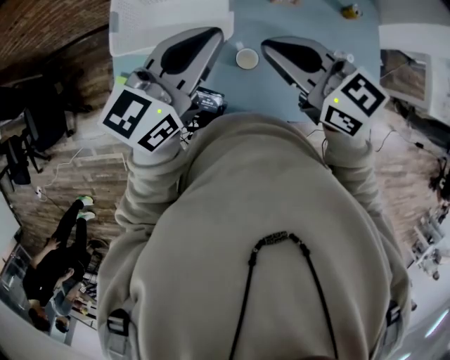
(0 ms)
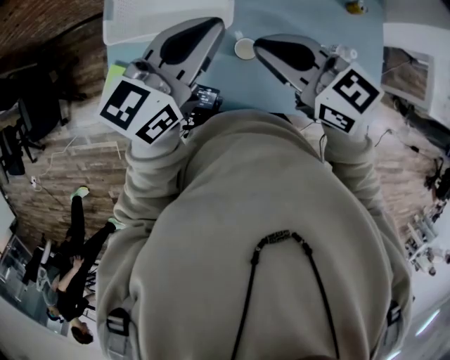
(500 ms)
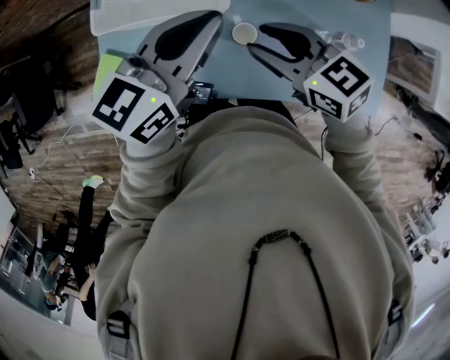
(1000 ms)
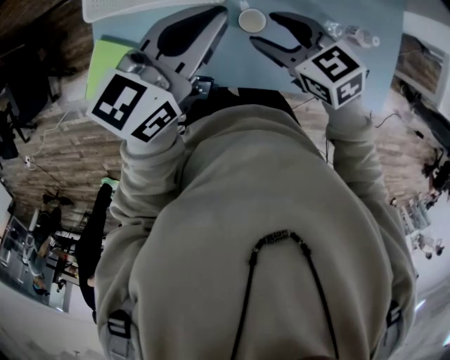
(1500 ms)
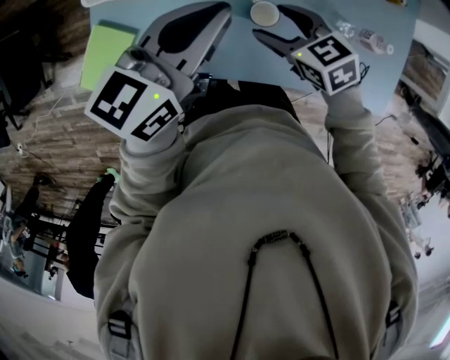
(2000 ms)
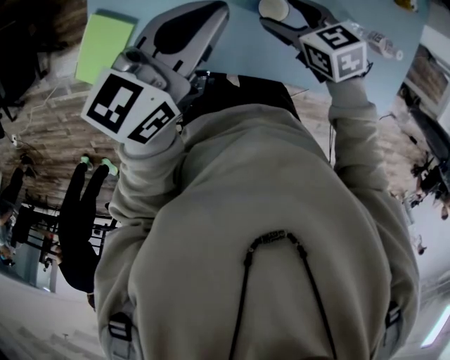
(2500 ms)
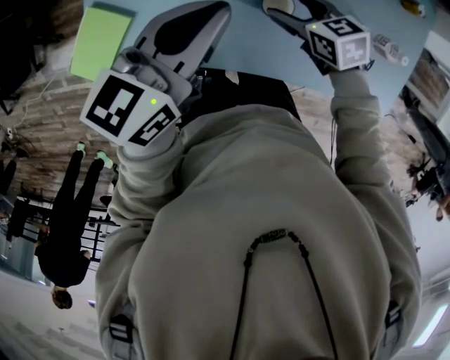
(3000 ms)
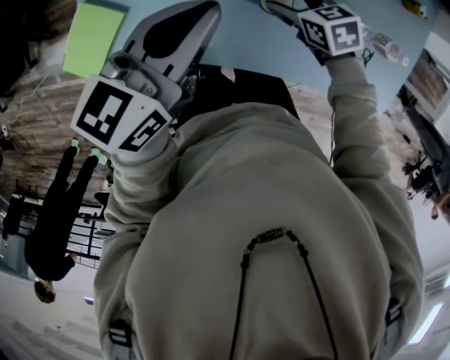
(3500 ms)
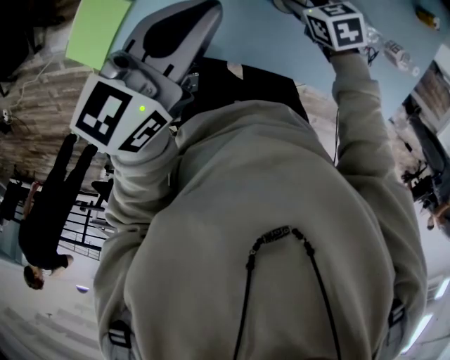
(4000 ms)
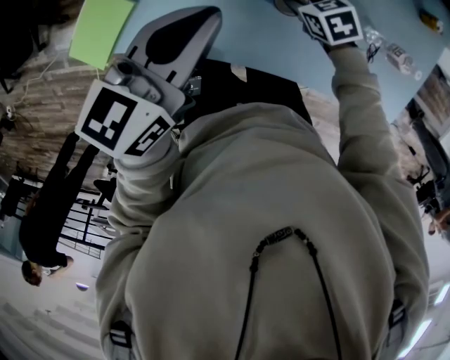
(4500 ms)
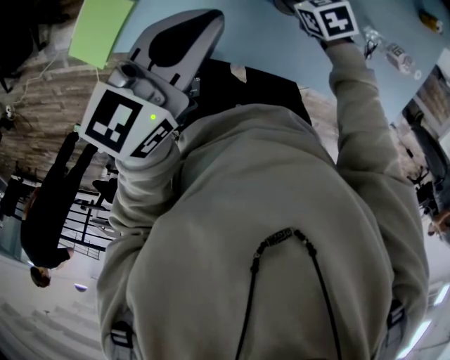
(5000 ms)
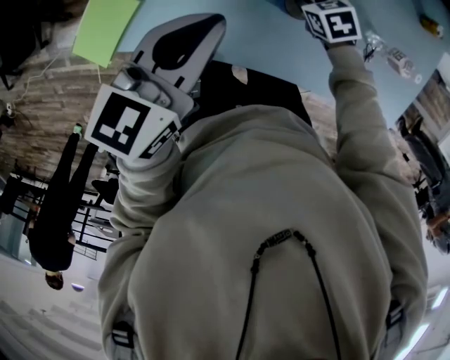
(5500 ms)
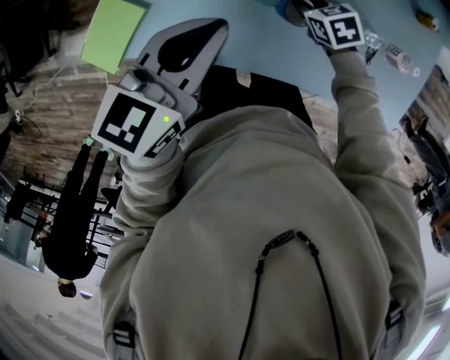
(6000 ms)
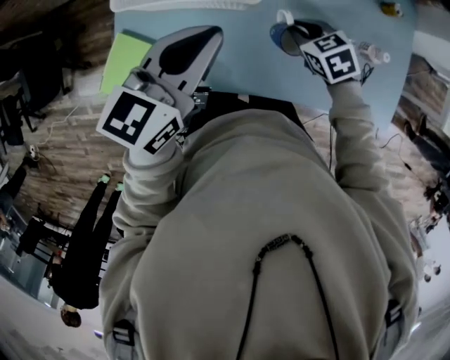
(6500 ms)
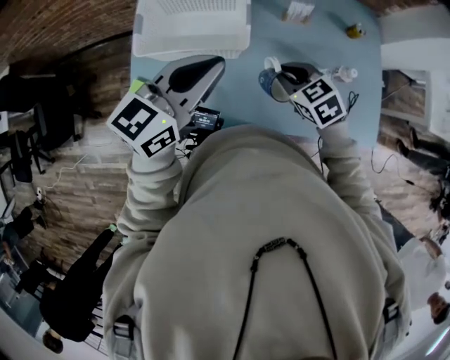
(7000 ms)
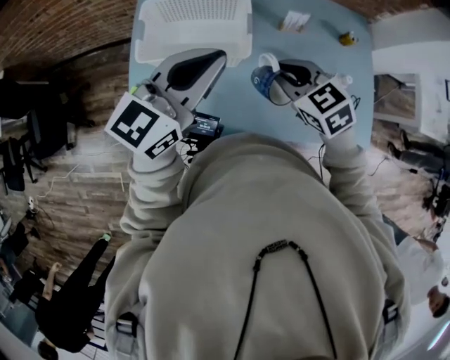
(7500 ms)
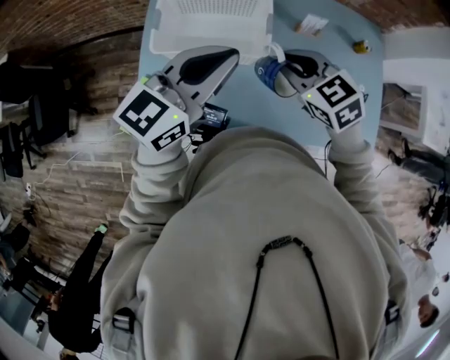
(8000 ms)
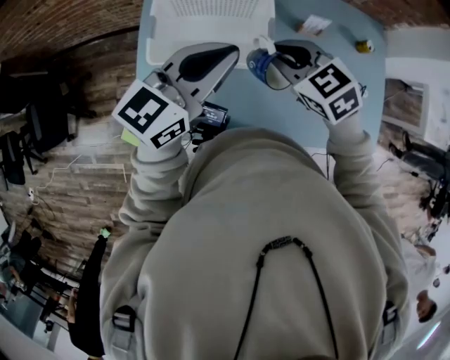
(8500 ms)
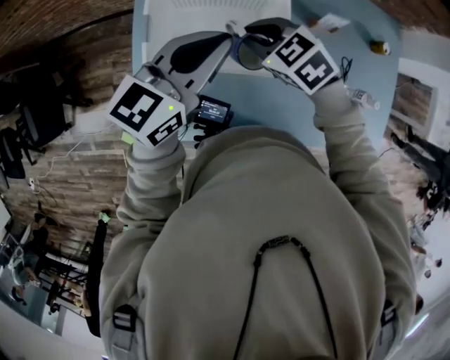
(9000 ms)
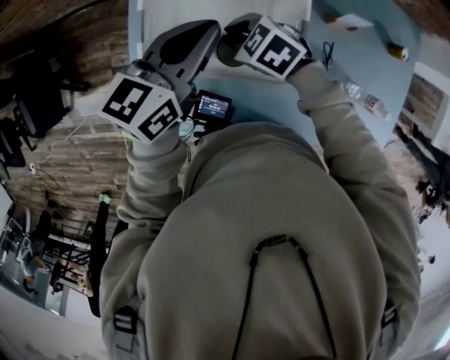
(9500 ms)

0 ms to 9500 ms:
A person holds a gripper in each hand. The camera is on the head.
0 ms to 2000 ms: The left gripper is displaced downward by some 10 cm; the right gripper travels downward by roughly 25 cm, changes its angle by roughly 30 degrees, and opens.
2000 ms to 4000 ms: The left gripper moves downward, roughly 5 cm, while the right gripper goes about 15 cm downward.
4000 ms to 5500 ms: The right gripper closes up.
5500 ms to 7500 ms: The right gripper shifts some 30 cm upward, and changes its angle by roughly 30 degrees, while the left gripper heads upward, covering some 20 cm, and turns by roughly 30 degrees.
7500 ms to 9500 ms: The right gripper shifts about 30 cm downward, to the left and forward, and turns by about 30 degrees. Meanwhile the left gripper moves forward and downward, about 25 cm, and swivels approximately 30 degrees.

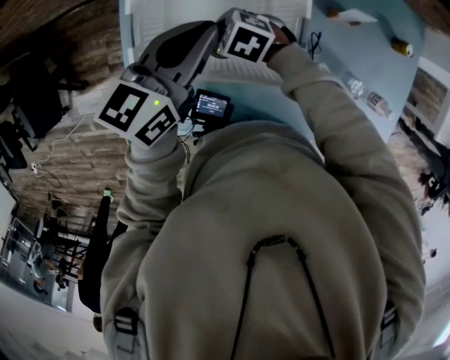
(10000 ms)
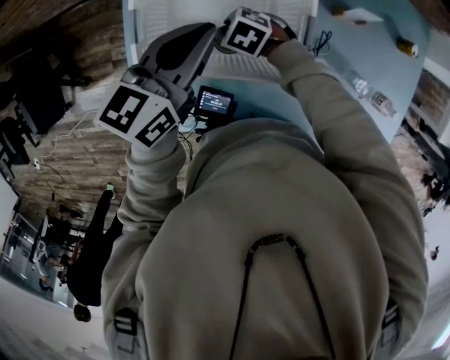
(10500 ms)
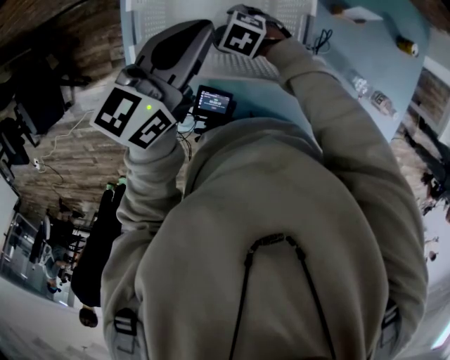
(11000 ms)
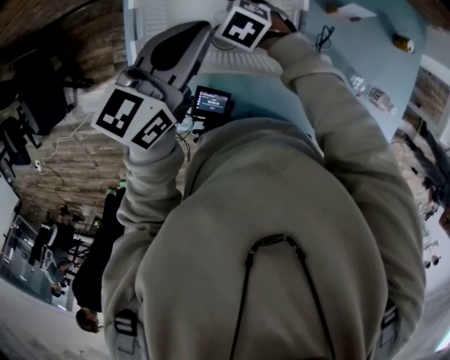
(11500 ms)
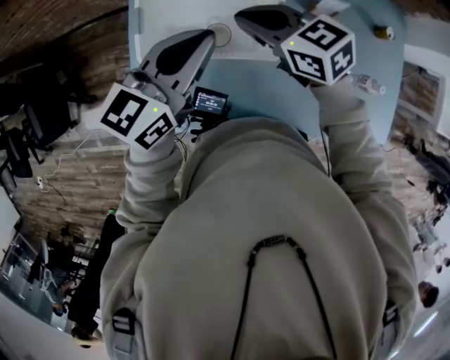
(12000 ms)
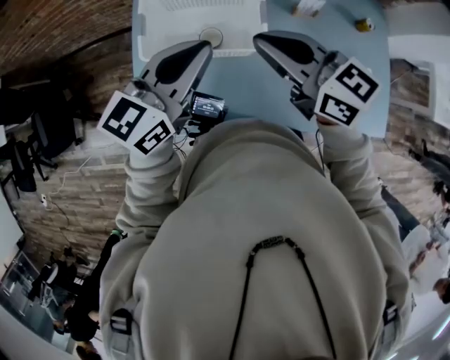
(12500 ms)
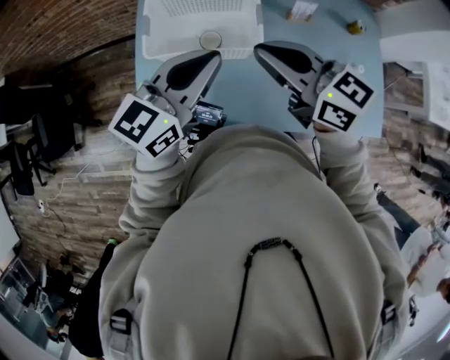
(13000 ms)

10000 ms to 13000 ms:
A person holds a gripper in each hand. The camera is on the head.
10000 ms to 11500 ms: The right gripper opens up.
11500 ms to 13000 ms: The right gripper is displaced upward and backward by approximately 35 cm, tips its fingers upward by some 60 degrees, and closes up. The left gripper heads backward and upward, covering about 15 cm.

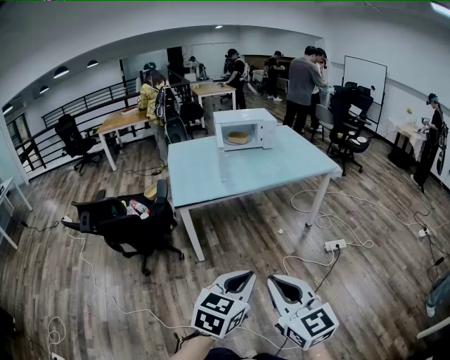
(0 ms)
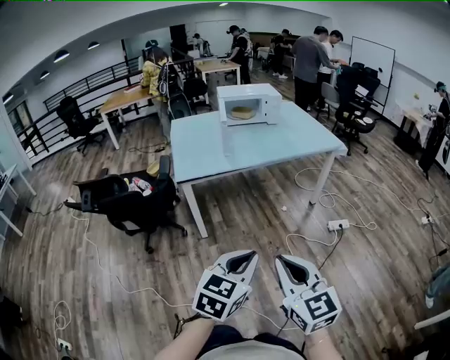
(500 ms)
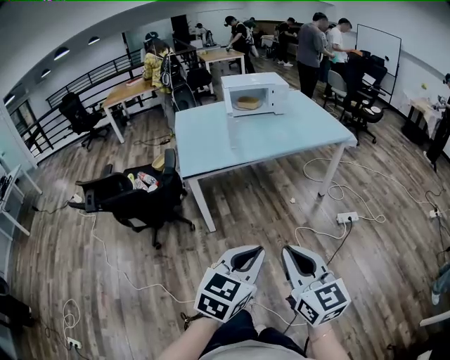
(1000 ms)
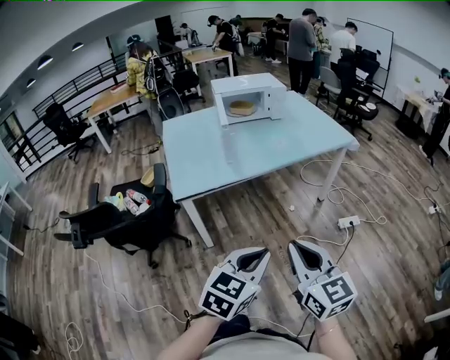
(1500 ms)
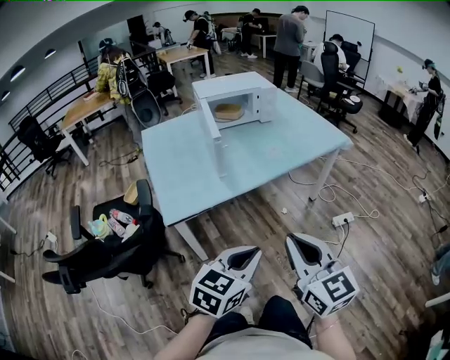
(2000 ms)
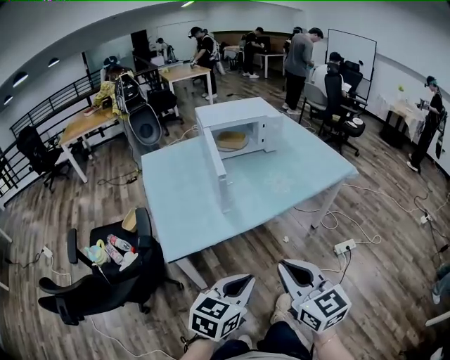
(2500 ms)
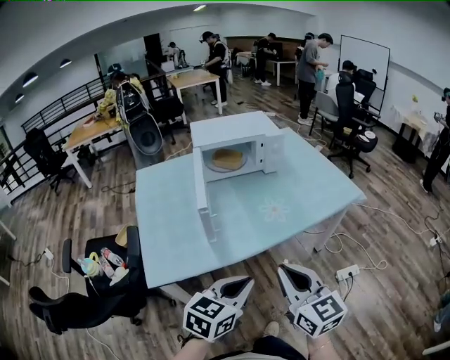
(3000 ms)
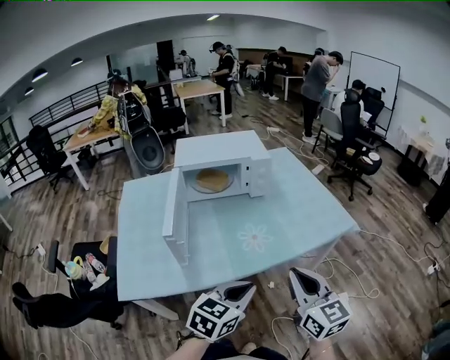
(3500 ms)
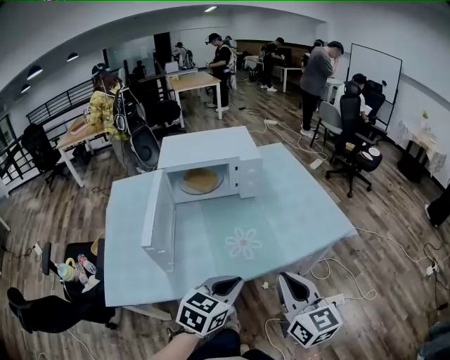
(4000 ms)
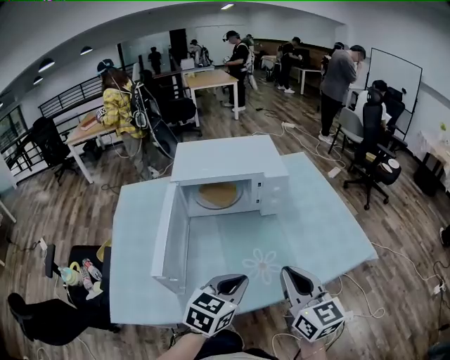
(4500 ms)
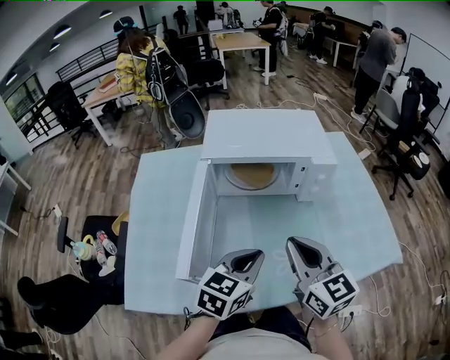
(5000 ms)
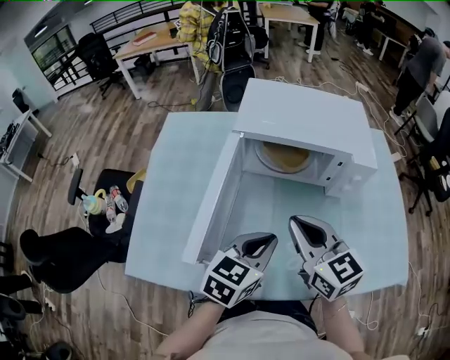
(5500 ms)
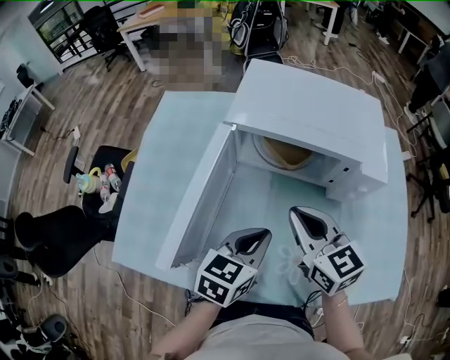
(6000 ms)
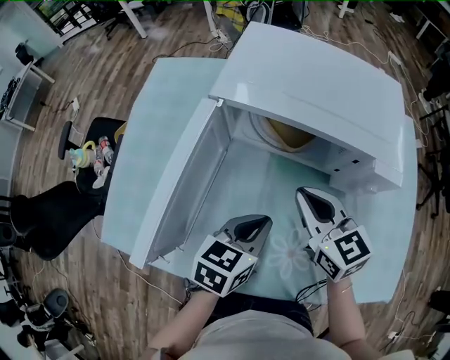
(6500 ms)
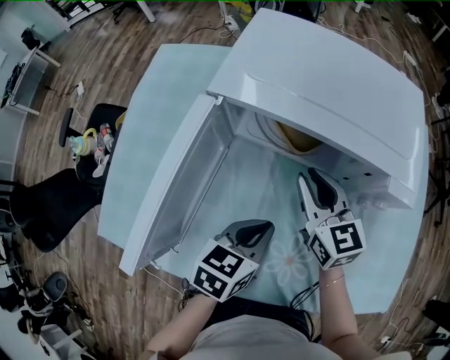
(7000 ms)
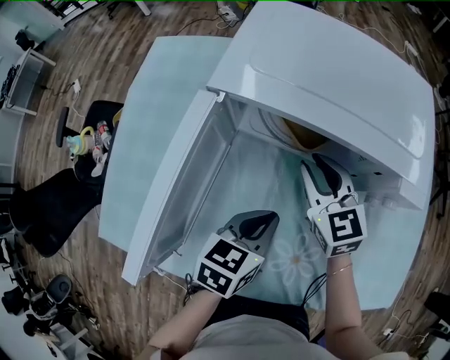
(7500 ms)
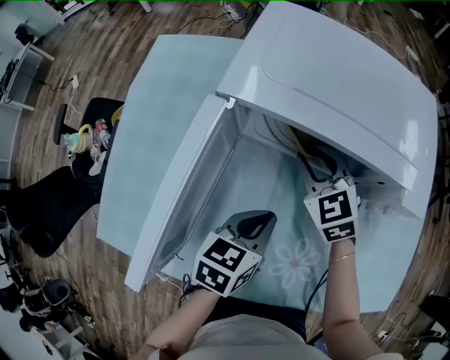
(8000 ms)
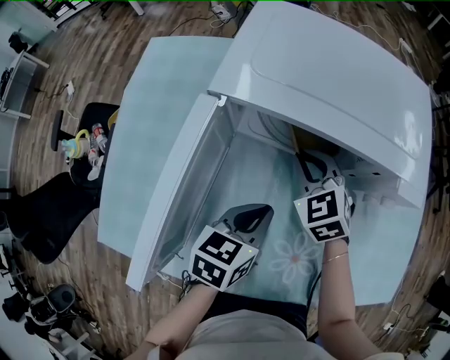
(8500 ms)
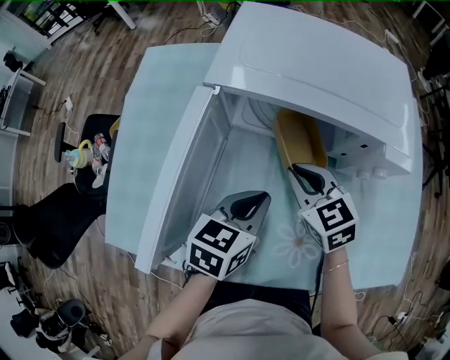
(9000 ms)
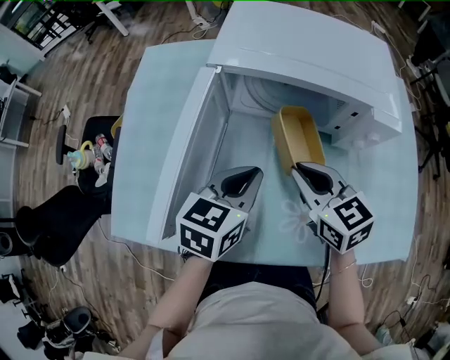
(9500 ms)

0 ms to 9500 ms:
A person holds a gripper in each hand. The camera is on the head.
0 ms to 2000 ms: The two grippers go about 30 cm forward.
2000 ms to 4000 ms: Both grippers are carried forward, roughly 40 cm.
4000 ms to 5500 ms: The two grippers go some 30 cm forward and to the left. The right gripper rotates about 30 degrees.
5500 ms to 7500 ms: The right gripper shifts some 25 cm forward and downward. The left gripper moves downward and forward, about 15 cm, and rotates approximately 20 degrees.
7500 ms to 9500 ms: The left gripper heads upward, covering about 5 cm; the right gripper shifts some 15 cm backward.

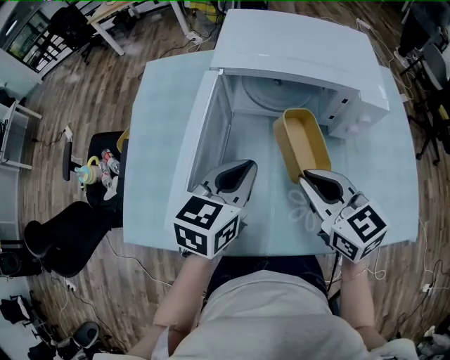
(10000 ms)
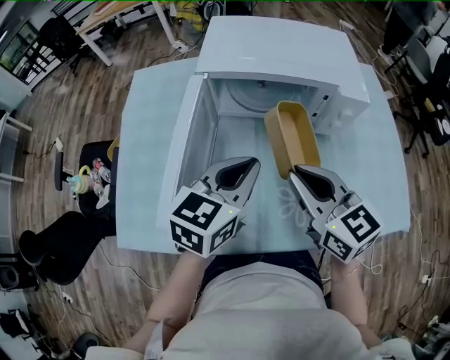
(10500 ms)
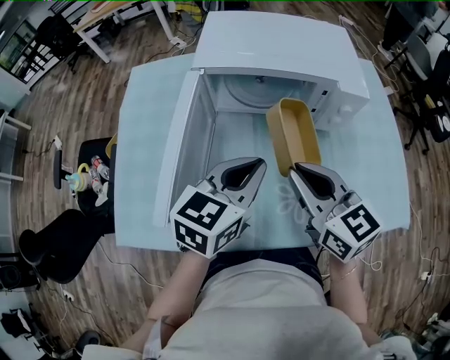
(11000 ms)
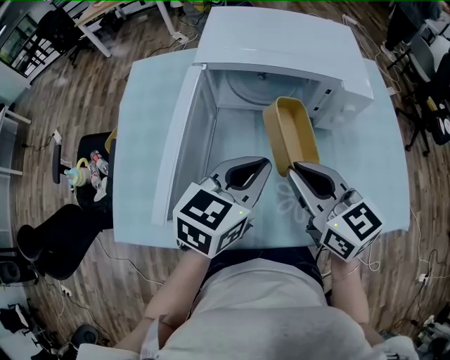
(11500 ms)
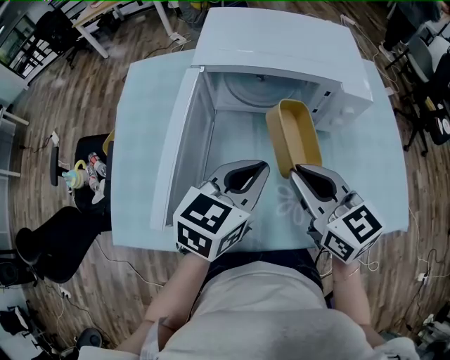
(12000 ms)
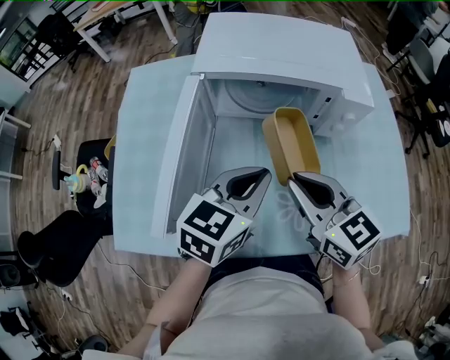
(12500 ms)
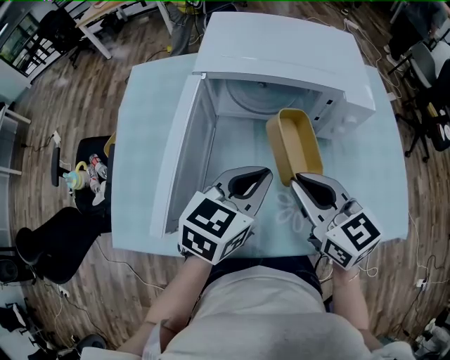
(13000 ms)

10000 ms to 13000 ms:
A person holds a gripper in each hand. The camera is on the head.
10000 ms to 11500 ms: The left gripper is displaced to the right by roughly 5 cm.
11500 ms to 13000 ms: The grippers stay close to where they were, moving slightly.

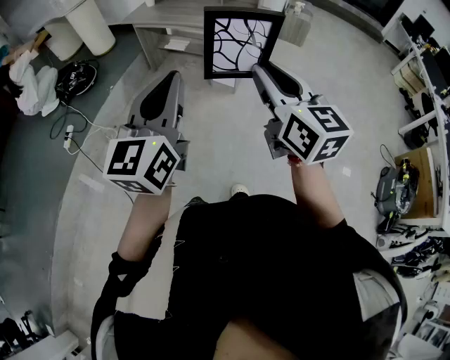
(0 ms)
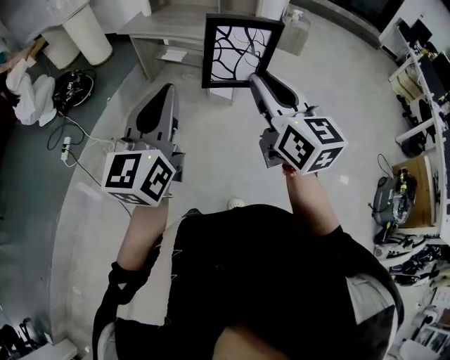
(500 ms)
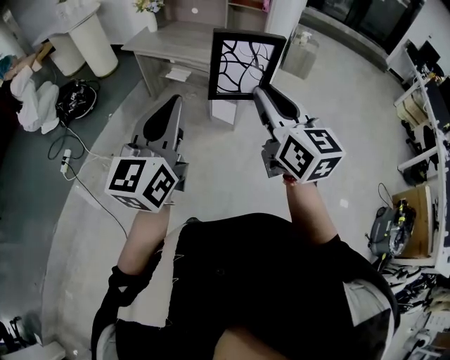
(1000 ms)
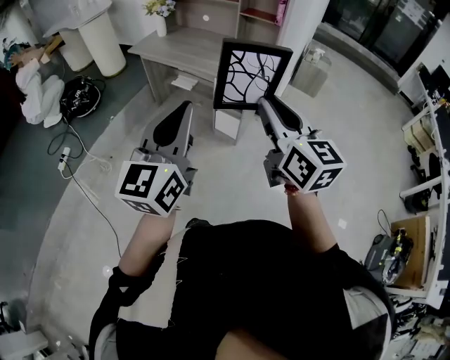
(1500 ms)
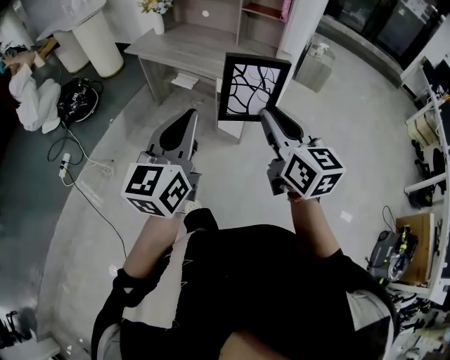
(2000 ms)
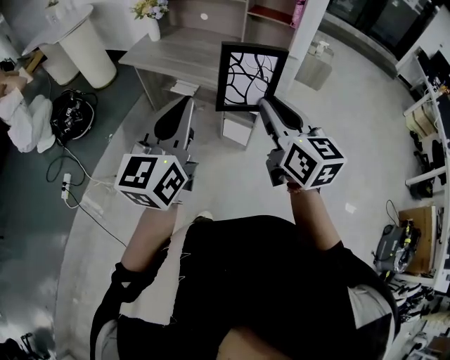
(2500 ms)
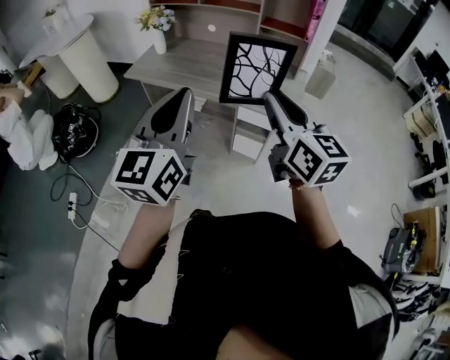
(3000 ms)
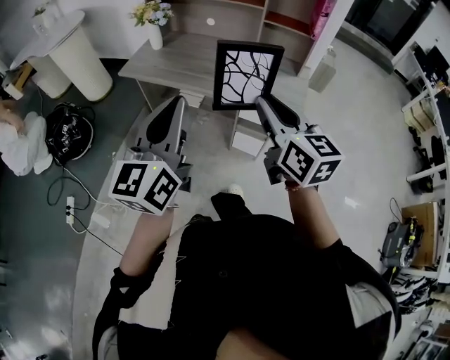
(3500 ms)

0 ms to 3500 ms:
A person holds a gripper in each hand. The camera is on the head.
0 ms to 2000 ms: Both grippers travel together forward, some 25 cm.
2000 ms to 3500 ms: The two grippers go approximately 25 cm forward and to the left.
